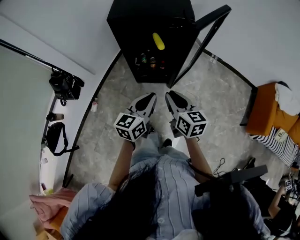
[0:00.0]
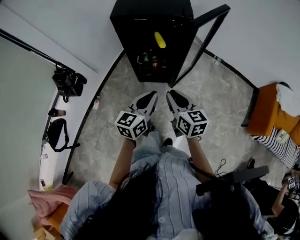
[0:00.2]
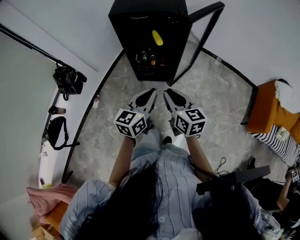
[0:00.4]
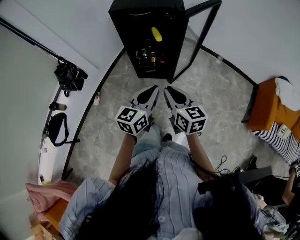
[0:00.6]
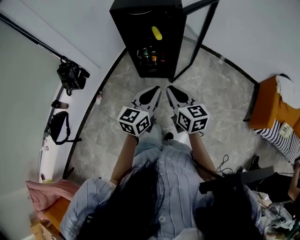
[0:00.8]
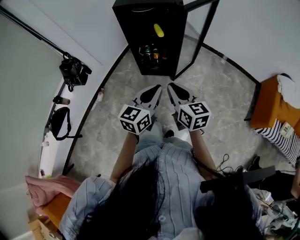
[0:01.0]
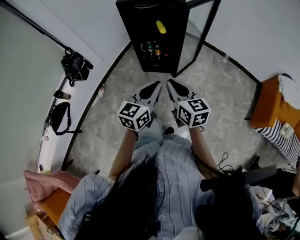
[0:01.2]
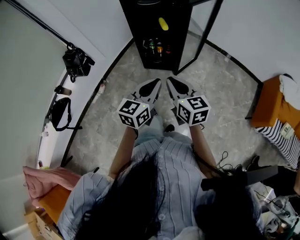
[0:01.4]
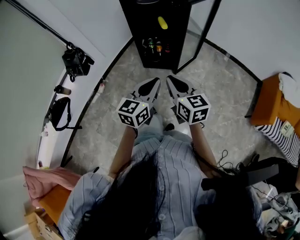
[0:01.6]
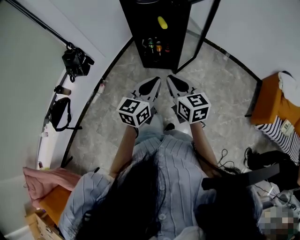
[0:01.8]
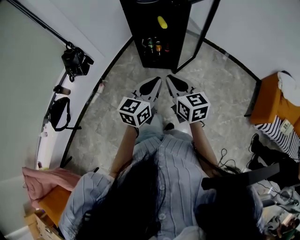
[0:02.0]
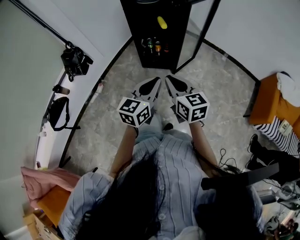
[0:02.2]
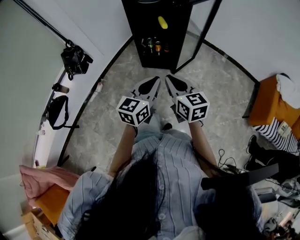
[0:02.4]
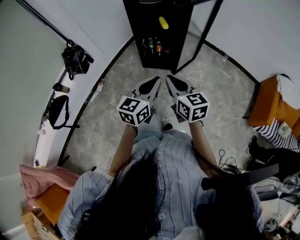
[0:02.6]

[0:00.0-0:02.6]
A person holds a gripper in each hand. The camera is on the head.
0:00.0 to 0:01.2: Both grippers move backward, about 15 cm.
0:01.2 to 0:02.6: The grippers make only small movements.

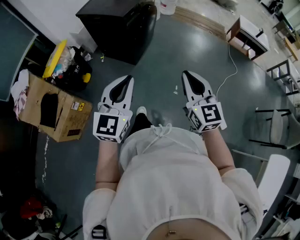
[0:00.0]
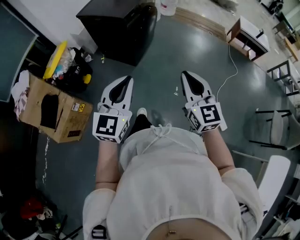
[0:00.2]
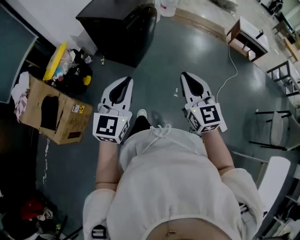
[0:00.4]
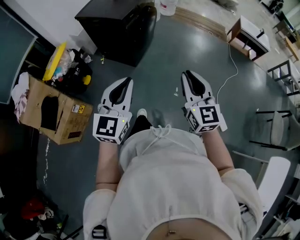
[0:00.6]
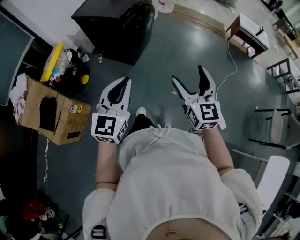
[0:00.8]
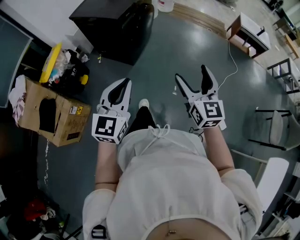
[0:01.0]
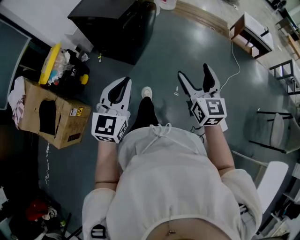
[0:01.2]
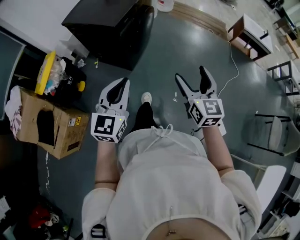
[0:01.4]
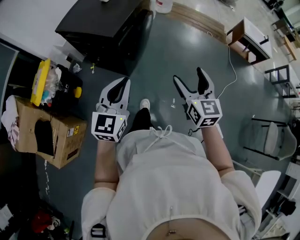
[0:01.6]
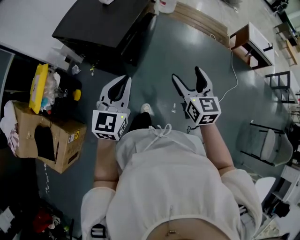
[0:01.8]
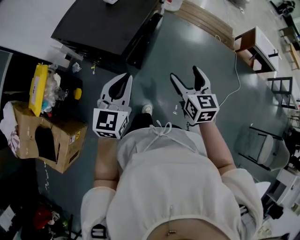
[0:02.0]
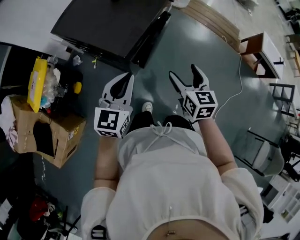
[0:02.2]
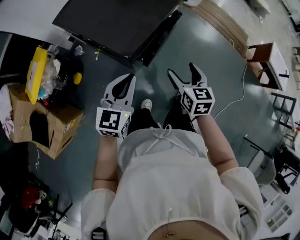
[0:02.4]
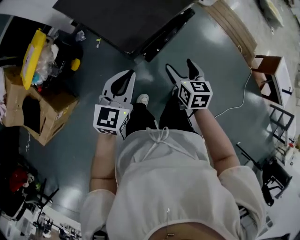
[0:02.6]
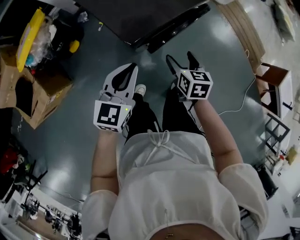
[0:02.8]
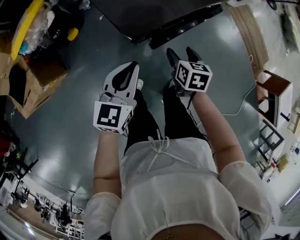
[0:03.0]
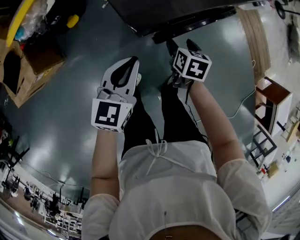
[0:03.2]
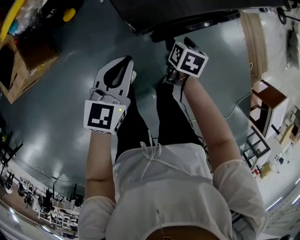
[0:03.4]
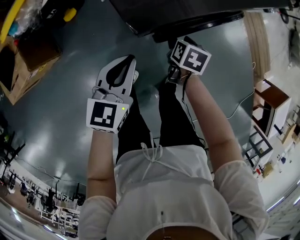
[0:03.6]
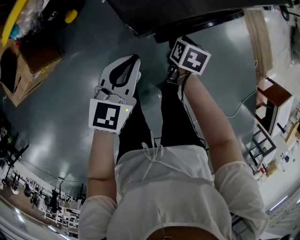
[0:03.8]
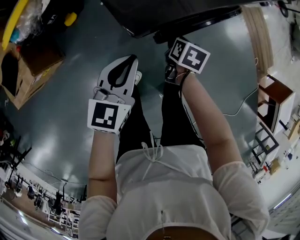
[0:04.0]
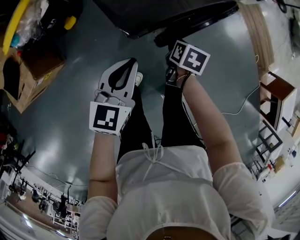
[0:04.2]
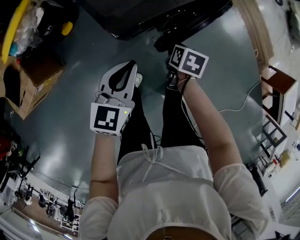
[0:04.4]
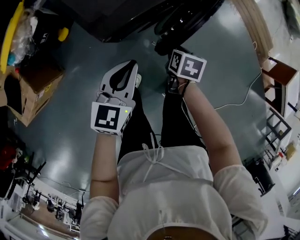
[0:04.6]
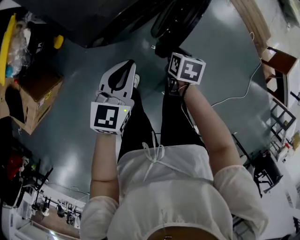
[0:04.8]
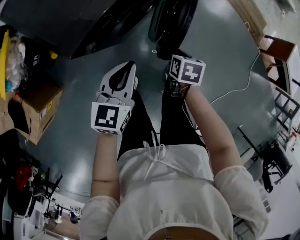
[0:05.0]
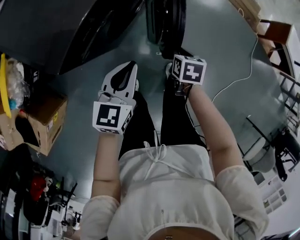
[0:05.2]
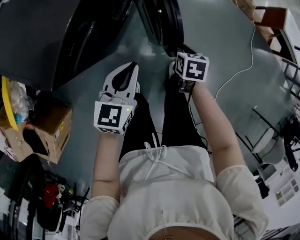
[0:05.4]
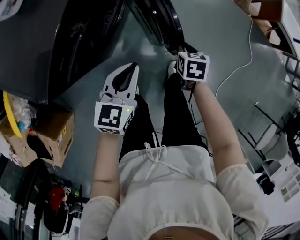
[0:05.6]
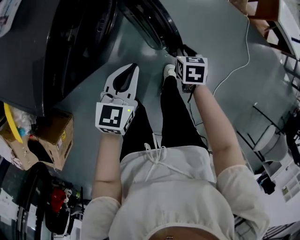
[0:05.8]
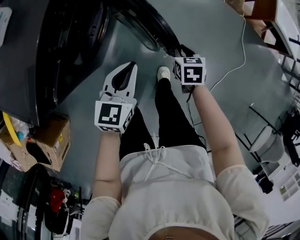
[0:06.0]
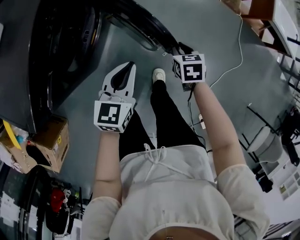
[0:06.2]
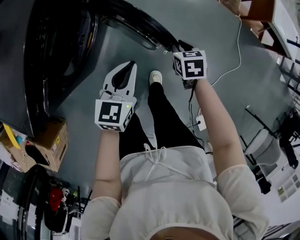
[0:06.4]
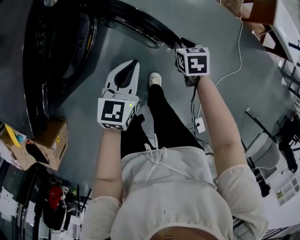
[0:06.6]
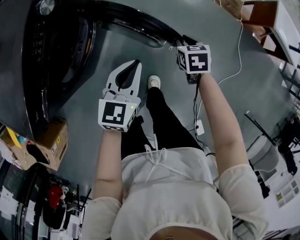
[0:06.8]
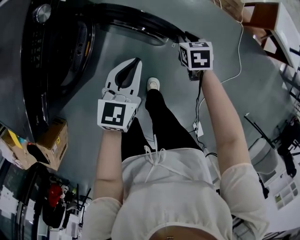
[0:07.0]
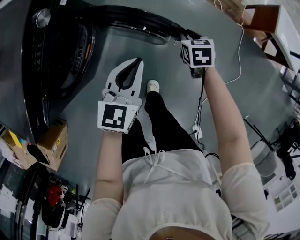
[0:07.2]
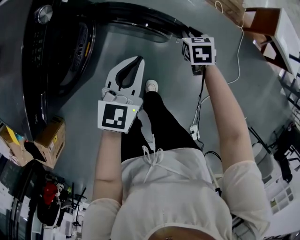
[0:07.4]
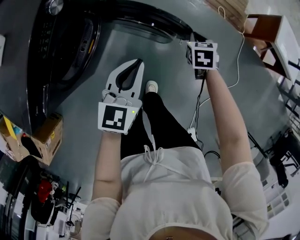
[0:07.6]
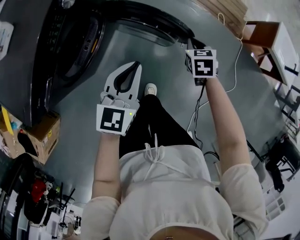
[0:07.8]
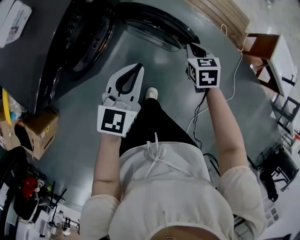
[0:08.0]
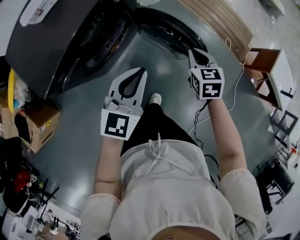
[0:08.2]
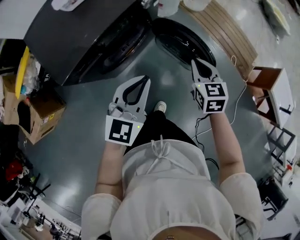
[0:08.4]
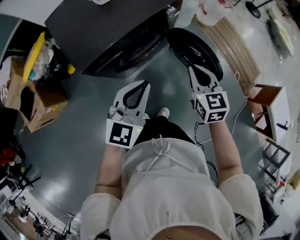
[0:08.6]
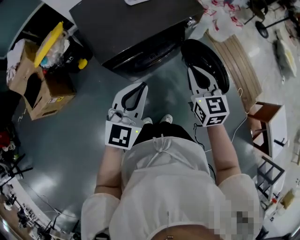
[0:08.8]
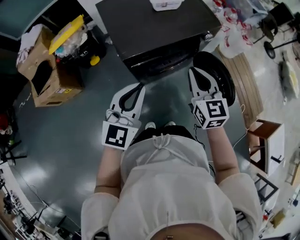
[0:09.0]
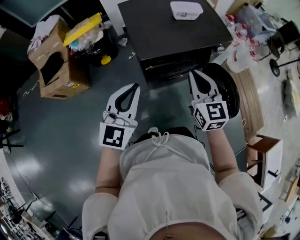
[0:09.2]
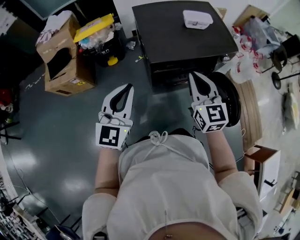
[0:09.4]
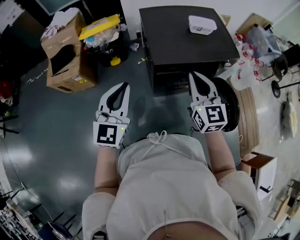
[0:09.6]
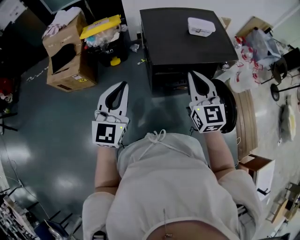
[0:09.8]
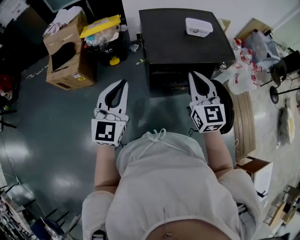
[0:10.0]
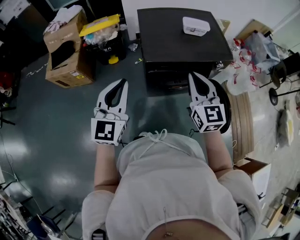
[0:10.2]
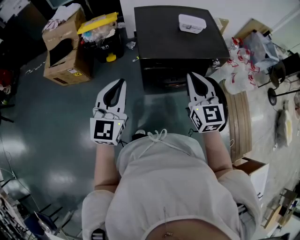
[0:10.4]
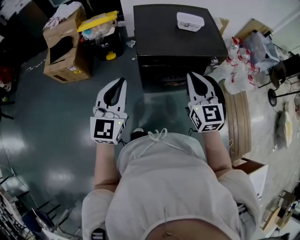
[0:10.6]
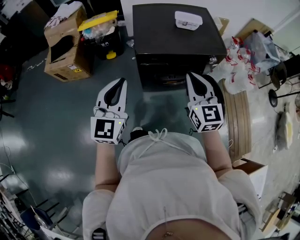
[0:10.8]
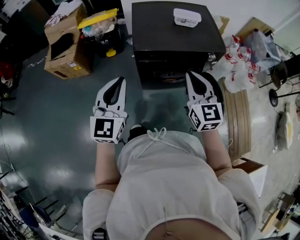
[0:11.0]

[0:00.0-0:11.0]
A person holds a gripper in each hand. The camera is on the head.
0:00.0 to 0:01.6: The grippers both shift forward by some 30 cm. The right gripper opens its fingers.
0:01.6 to 0:03.2: The left gripper heads downward, covering about 25 cm, and changes its angle by about 40 degrees. Meanwhile the right gripper ends up approximately 60 cm from where it was, and tips its fingers downward by some 40 degrees.
0:03.2 to 0:04.8: The left gripper shifts approximately 10 cm to the right; the right gripper is displaced to the right and backward by about 10 cm, and closes.
0:04.8 to 0:06.2: The left gripper shifts by roughly 35 cm, and turns by some 20 degrees, while the right gripper ends up some 35 cm from where it was.
0:06.2 to 0:07.8: The left gripper goes approximately 10 cm forward, to the right and upward. The right gripper is displaced forward and to the right by roughly 15 cm.
0:07.8 to 0:09.4: Both grippers are carried some 50 cm. The left gripper turns by approximately 50 degrees; the right gripper tips its fingers upward by approximately 50 degrees.
0:09.4 to 0:11.0: The two grippers go about 10 cm to the right and backward.

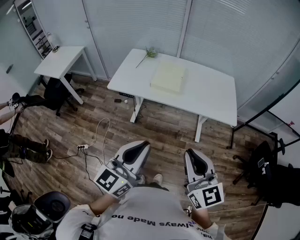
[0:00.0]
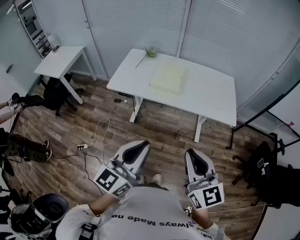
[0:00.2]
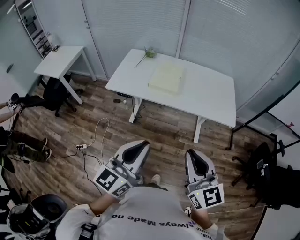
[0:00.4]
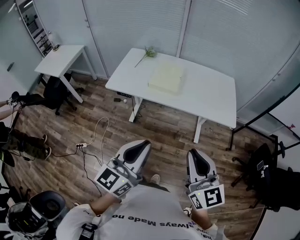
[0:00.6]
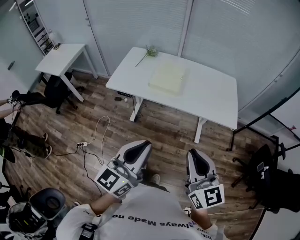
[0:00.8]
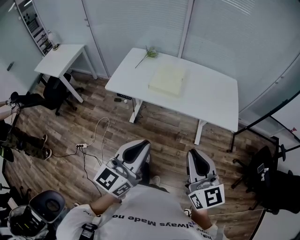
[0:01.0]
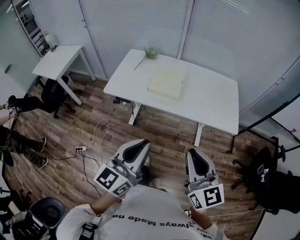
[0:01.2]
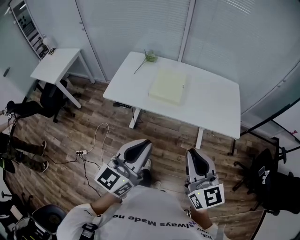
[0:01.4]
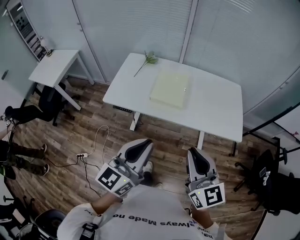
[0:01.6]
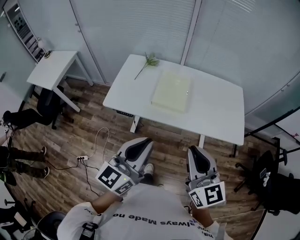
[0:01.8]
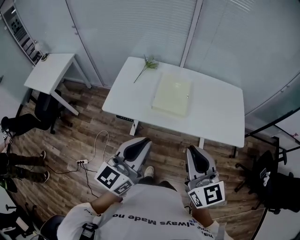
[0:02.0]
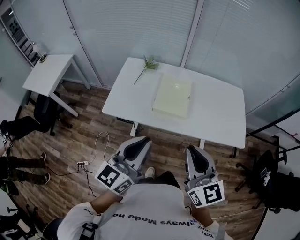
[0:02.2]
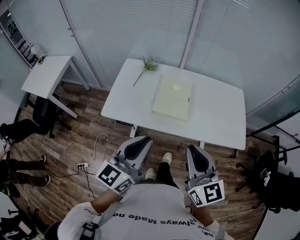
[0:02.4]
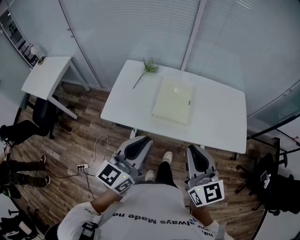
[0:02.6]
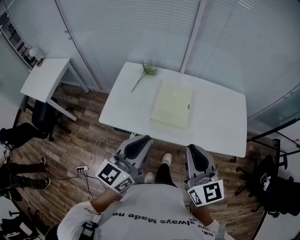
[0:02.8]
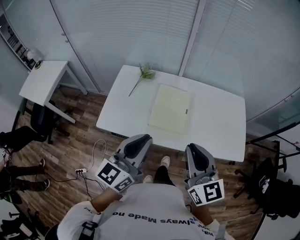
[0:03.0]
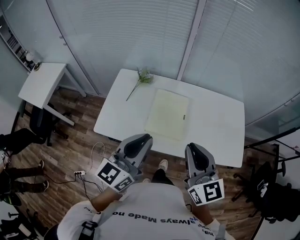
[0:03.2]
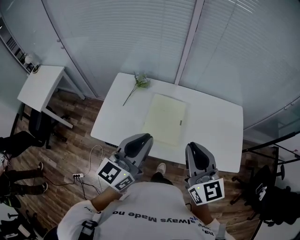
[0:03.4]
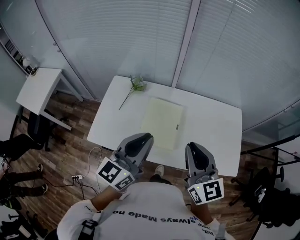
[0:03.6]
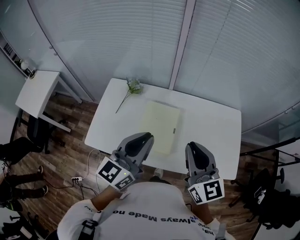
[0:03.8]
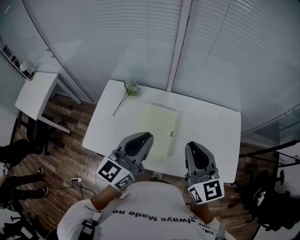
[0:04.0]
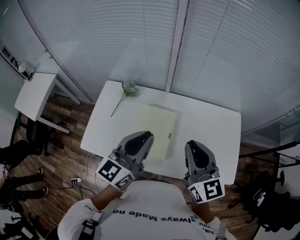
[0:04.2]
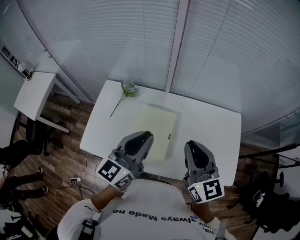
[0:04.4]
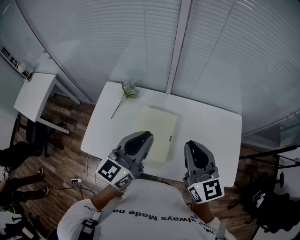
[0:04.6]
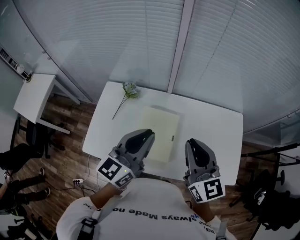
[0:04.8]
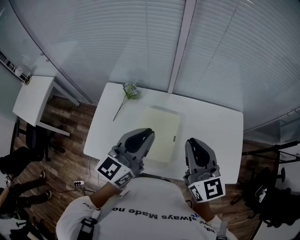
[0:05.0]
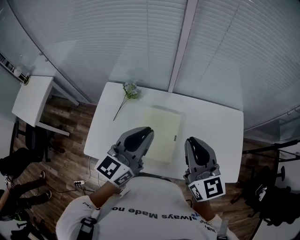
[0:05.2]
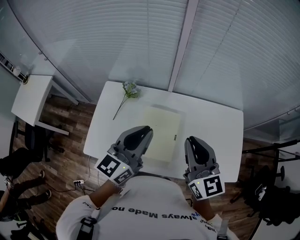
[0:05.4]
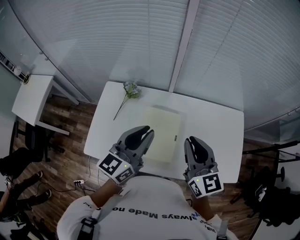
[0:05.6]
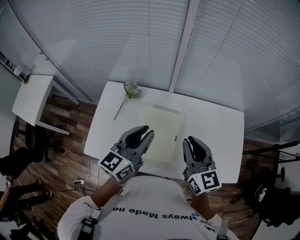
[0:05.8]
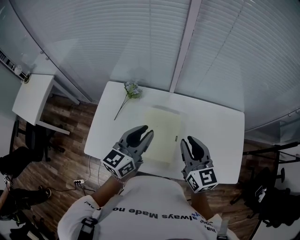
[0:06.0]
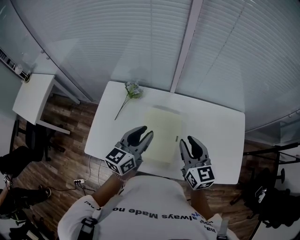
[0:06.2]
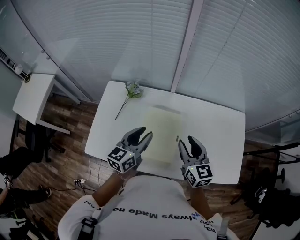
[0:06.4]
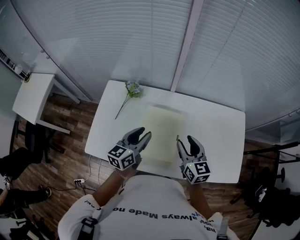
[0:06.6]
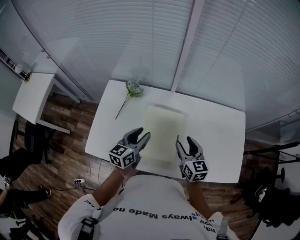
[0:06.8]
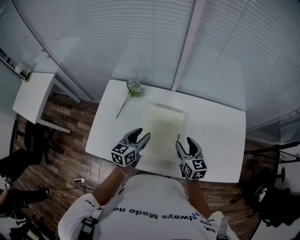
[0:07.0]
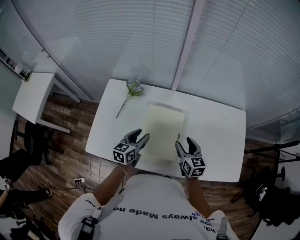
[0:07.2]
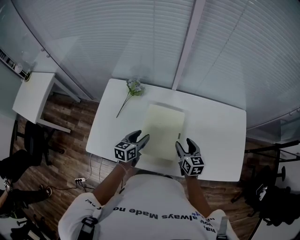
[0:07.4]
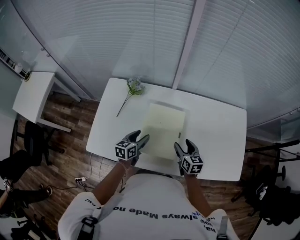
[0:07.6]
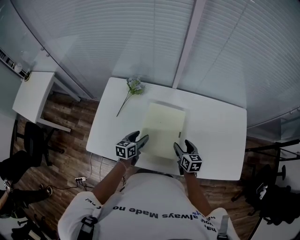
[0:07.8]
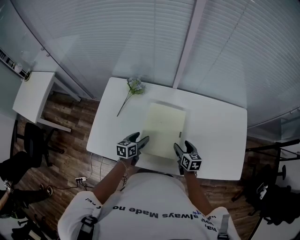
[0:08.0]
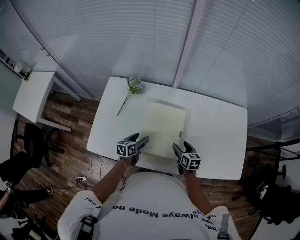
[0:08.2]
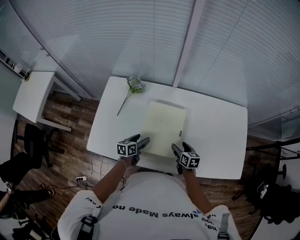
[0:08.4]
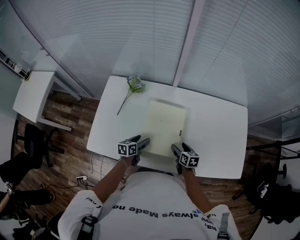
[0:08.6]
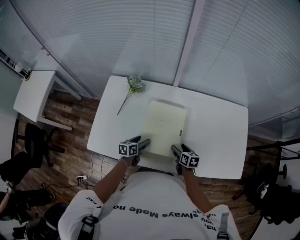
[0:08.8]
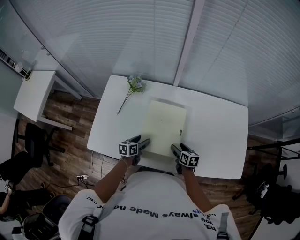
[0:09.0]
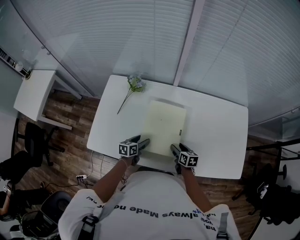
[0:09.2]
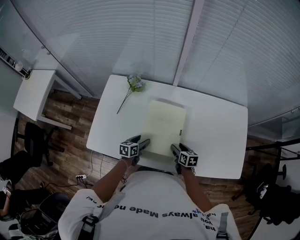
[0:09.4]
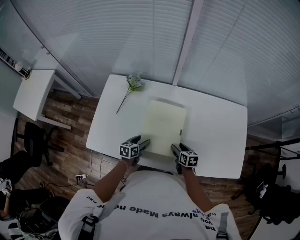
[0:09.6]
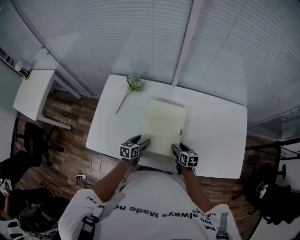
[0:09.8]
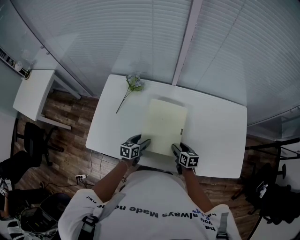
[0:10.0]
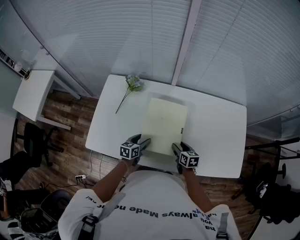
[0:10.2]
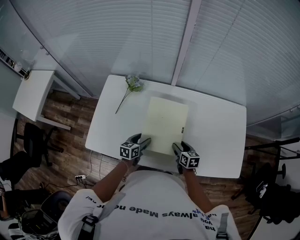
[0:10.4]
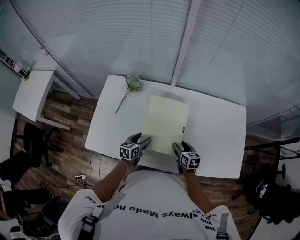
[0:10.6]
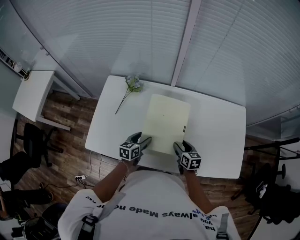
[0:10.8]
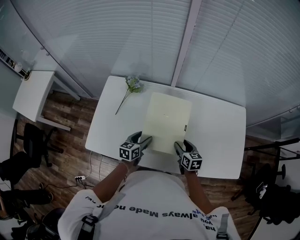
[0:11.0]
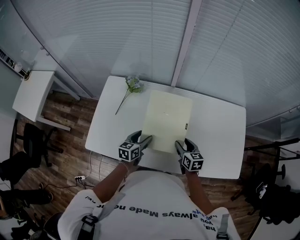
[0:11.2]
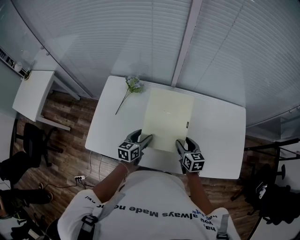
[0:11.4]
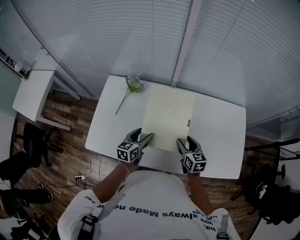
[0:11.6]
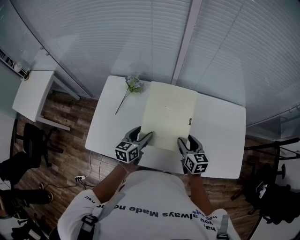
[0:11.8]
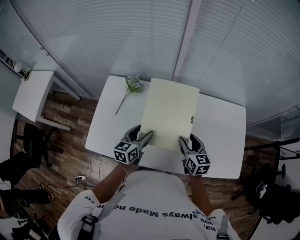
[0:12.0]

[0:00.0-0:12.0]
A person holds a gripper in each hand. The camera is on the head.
0:00.0 to 0:01.6: The two grippers go about 20 cm forward.
0:01.6 to 0:03.0: Both grippers move forward, roughly 25 cm.
0:03.0 to 0:04.4: The grippers both shift forward and to the right by some 25 cm.
0:04.4 to 0:06.0: The left gripper travels downward, to the left and forward by about 10 cm, while the right gripper heads downward and to the left, covering about 10 cm.
0:06.0 to 0:07.6: Both grippers move downward, approximately 25 cm. The left gripper swivels roughly 30 degrees, and opens; the right gripper swivels approximately 20 degrees, and opens its fingers.
0:07.6 to 0:09.0: The grippers both shift downward by about 10 cm.
0:09.0 to 0:10.4: The grippers stay close to where they were, moving slightly.
0:10.4 to 0:12.0: The two grippers go some 15 cm upward.
